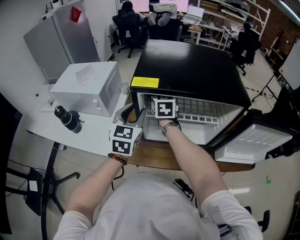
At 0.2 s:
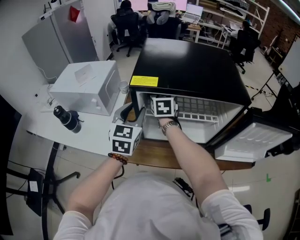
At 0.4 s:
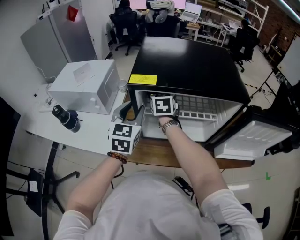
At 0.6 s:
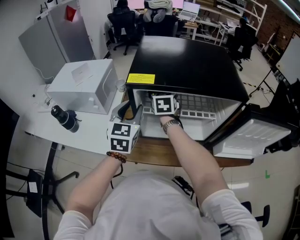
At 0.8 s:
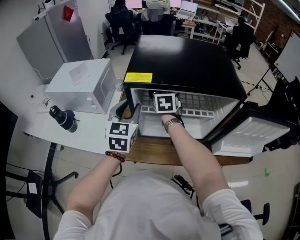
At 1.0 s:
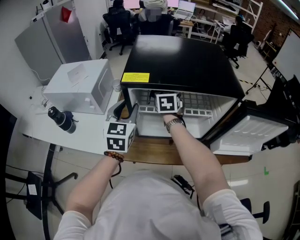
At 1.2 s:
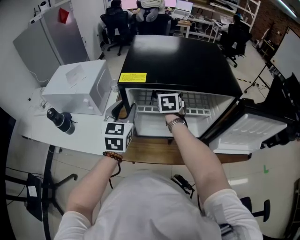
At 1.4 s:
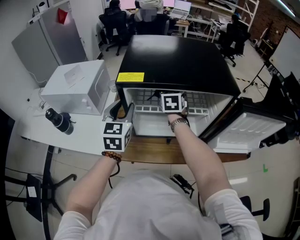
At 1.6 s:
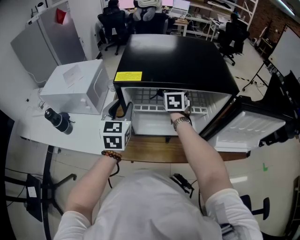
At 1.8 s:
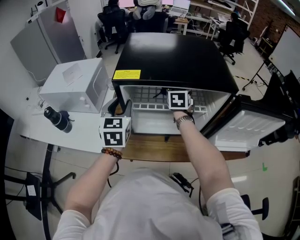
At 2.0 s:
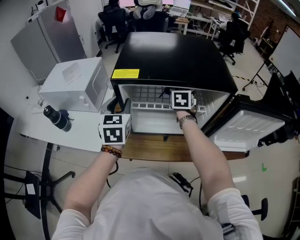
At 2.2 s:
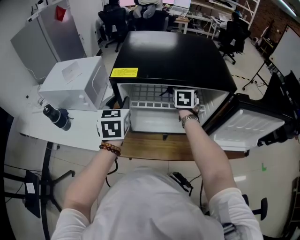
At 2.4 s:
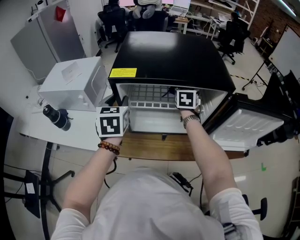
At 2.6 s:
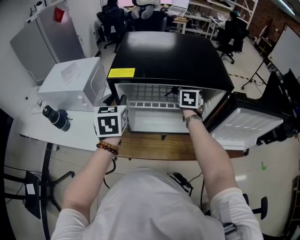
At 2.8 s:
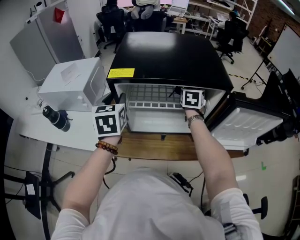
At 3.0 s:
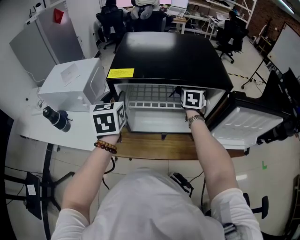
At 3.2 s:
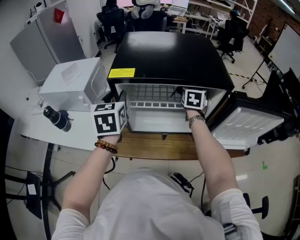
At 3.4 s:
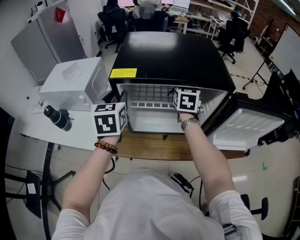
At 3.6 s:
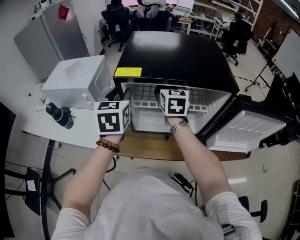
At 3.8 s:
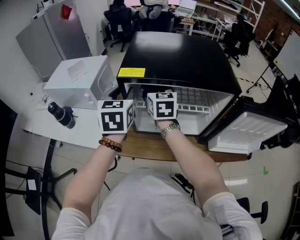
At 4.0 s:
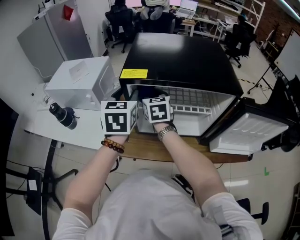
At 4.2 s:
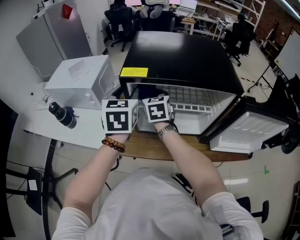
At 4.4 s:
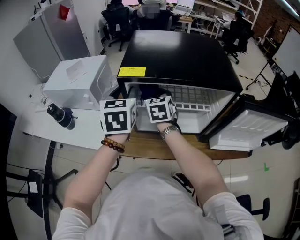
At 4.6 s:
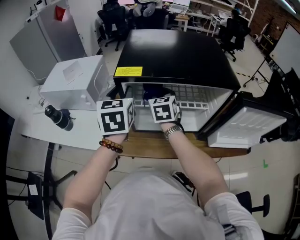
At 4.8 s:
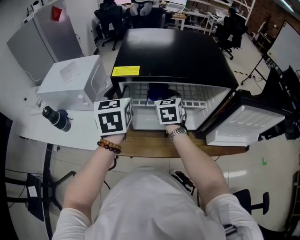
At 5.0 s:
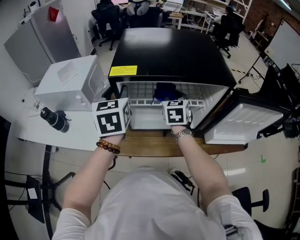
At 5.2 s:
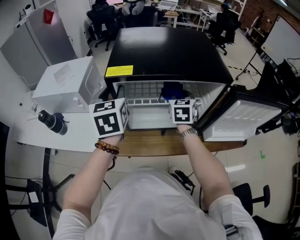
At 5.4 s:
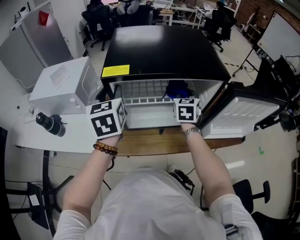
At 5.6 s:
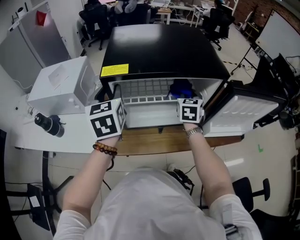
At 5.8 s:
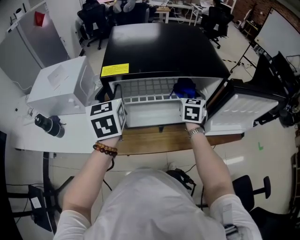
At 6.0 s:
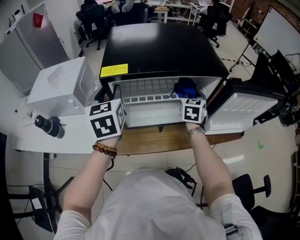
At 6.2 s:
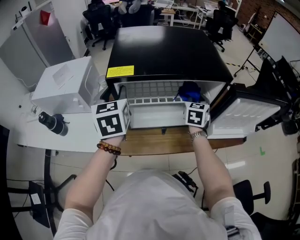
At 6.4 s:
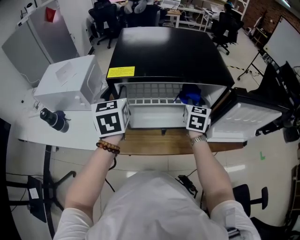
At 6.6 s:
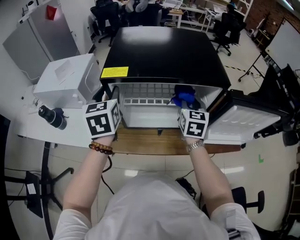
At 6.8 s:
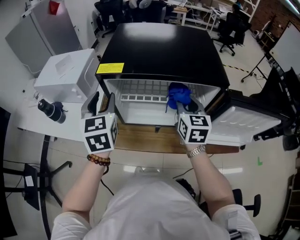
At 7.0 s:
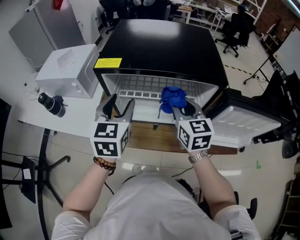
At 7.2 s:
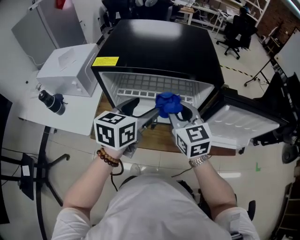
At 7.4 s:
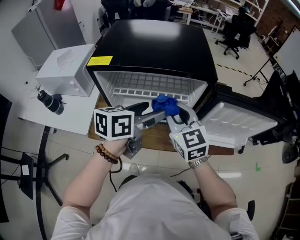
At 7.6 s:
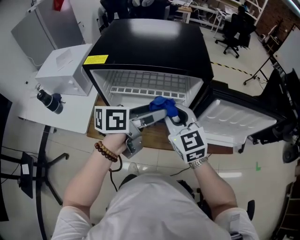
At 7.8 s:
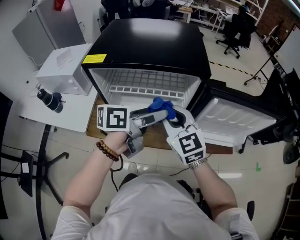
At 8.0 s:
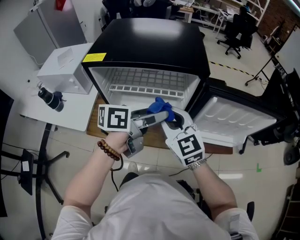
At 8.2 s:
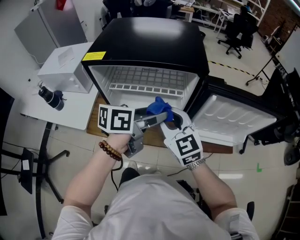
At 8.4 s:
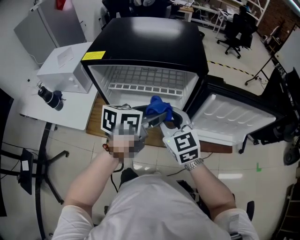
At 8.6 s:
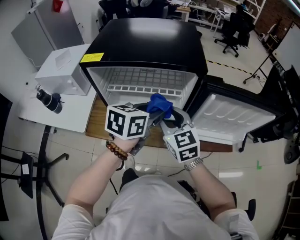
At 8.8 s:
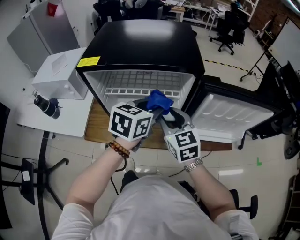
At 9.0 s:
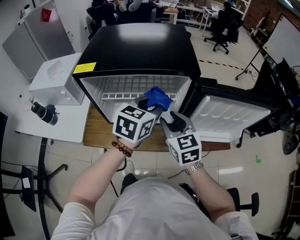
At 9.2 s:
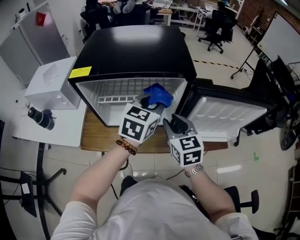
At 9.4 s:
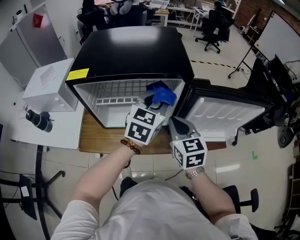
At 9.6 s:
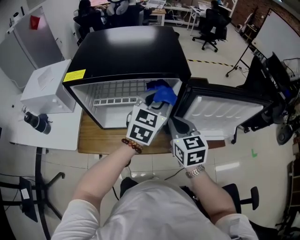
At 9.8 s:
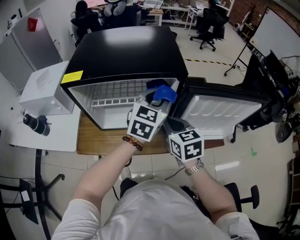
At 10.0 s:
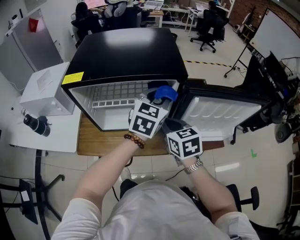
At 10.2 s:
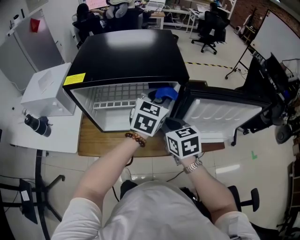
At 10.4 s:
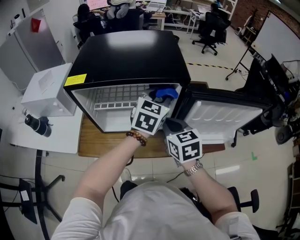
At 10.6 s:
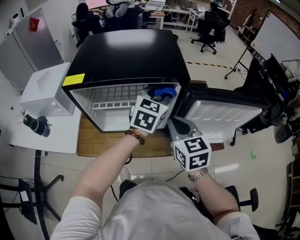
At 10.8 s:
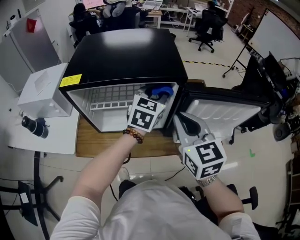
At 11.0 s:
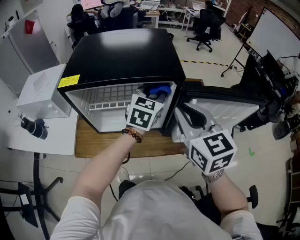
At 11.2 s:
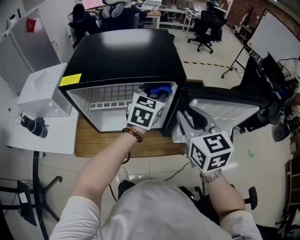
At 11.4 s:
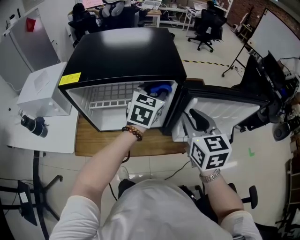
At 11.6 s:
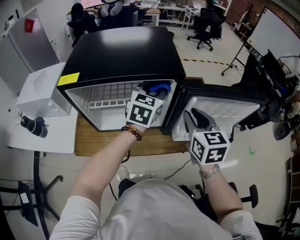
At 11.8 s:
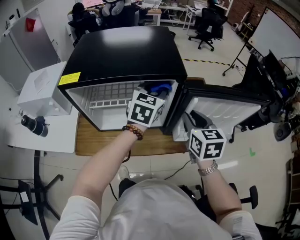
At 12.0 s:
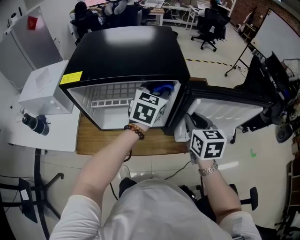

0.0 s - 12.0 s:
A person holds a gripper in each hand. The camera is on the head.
0.0 s - 1.6 s: The right gripper goes about 15 cm to the right, and rotates some 20 degrees.
1.6 s - 3.0 s: The right gripper travels to the right by roughly 10 cm.
3.0 s - 4.4 s: The right gripper shifts some 25 cm to the left, and changes its angle by roughly 20 degrees.
4.4 s - 6.0 s: The right gripper shifts about 25 cm to the right, and swivels roughly 30 degrees.
6.0 s - 7.6 s: The left gripper goes approximately 25 cm to the right, rotates approximately 60 degrees, and opens its fingers, while the right gripper goes about 15 cm backward and upward, and changes its angle by some 50 degrees.
7.6 s - 9.0 s: The left gripper ends up some 5 cm from where it was, changes its angle by some 40 degrees, and closes up, while the right gripper goes about 5 cm downward.
9.0 s - 10.4 s: The right gripper closes its fingers. Meanwhile the left gripper travels forward and to the right by approximately 10 cm.
10.4 s - 12.0 s: The right gripper is displaced to the right by approximately 10 cm, and moves approximately 15 cm upward and comes back.

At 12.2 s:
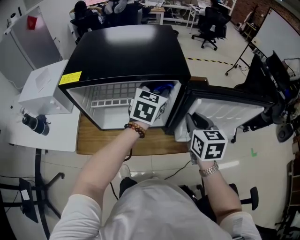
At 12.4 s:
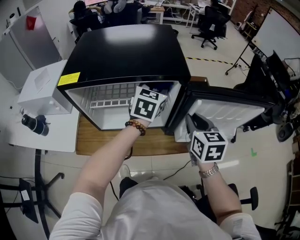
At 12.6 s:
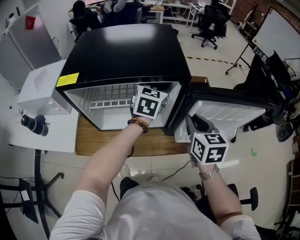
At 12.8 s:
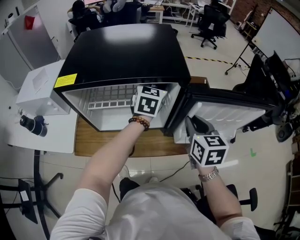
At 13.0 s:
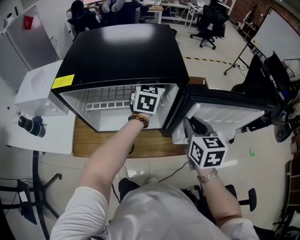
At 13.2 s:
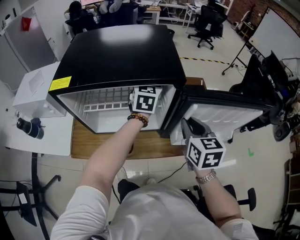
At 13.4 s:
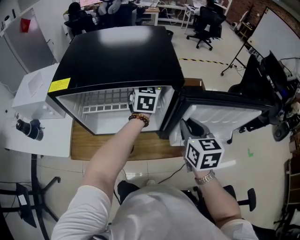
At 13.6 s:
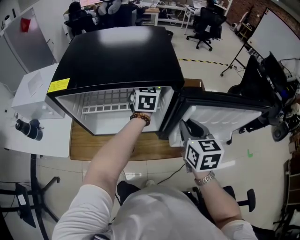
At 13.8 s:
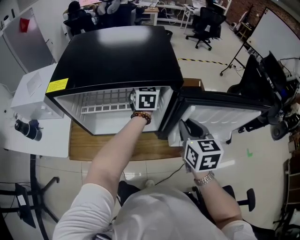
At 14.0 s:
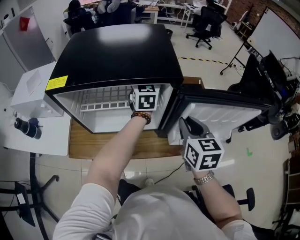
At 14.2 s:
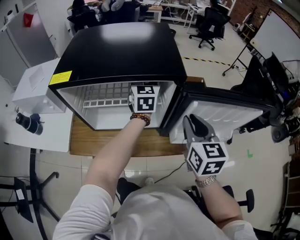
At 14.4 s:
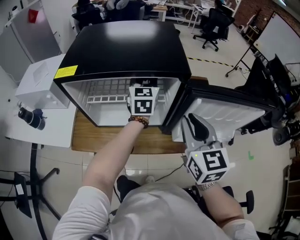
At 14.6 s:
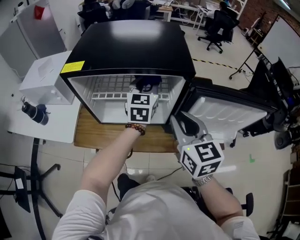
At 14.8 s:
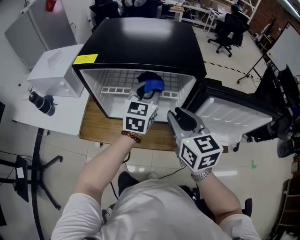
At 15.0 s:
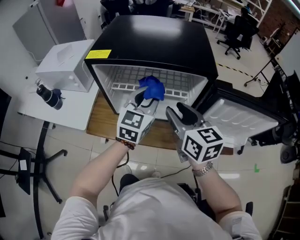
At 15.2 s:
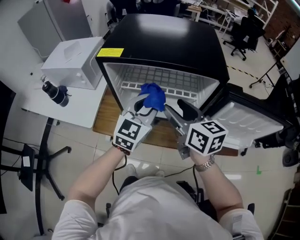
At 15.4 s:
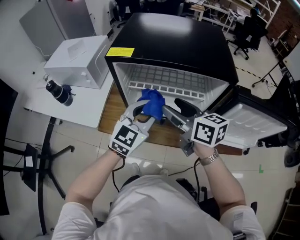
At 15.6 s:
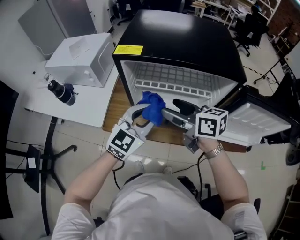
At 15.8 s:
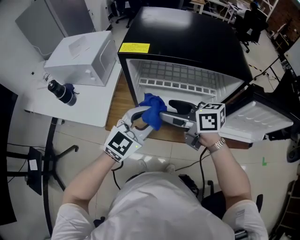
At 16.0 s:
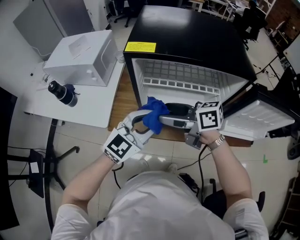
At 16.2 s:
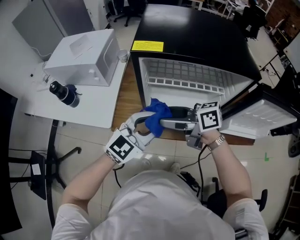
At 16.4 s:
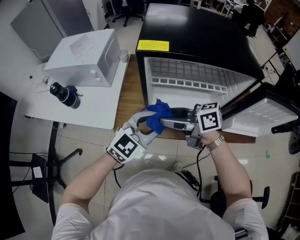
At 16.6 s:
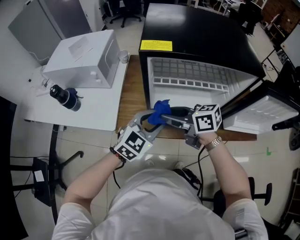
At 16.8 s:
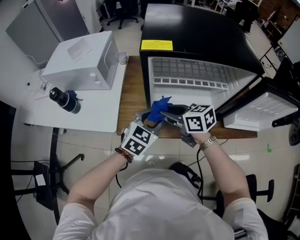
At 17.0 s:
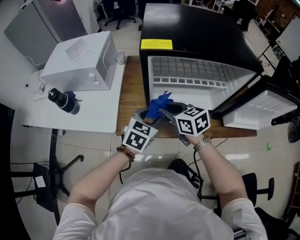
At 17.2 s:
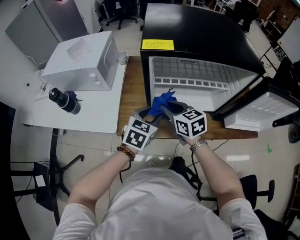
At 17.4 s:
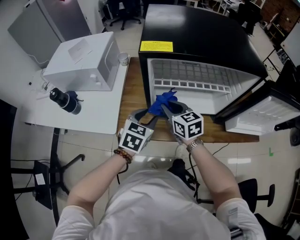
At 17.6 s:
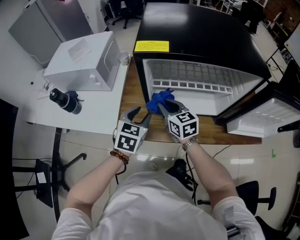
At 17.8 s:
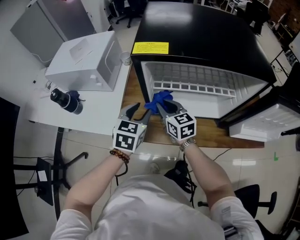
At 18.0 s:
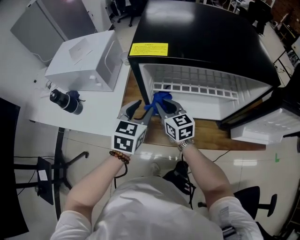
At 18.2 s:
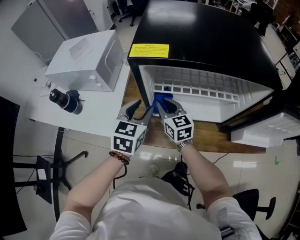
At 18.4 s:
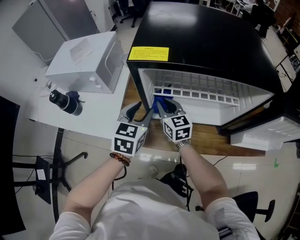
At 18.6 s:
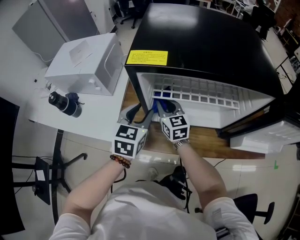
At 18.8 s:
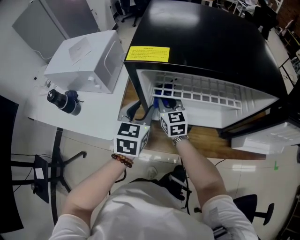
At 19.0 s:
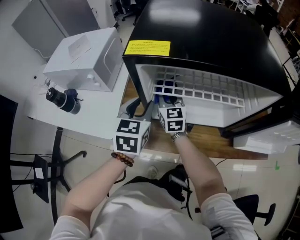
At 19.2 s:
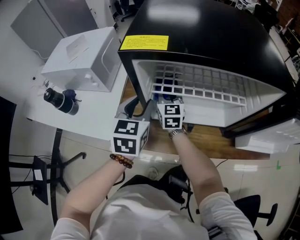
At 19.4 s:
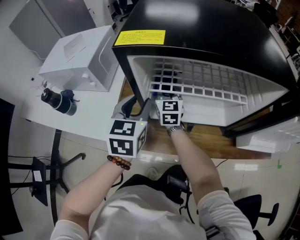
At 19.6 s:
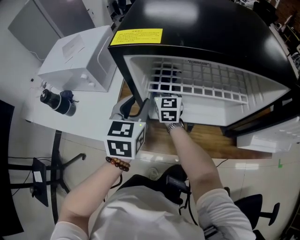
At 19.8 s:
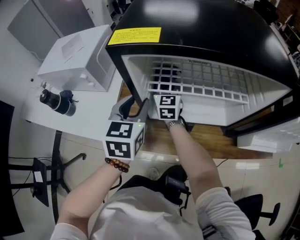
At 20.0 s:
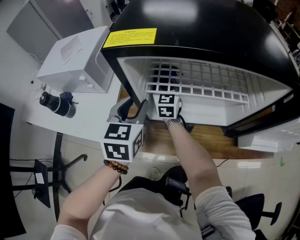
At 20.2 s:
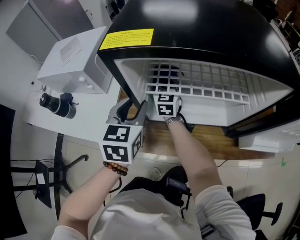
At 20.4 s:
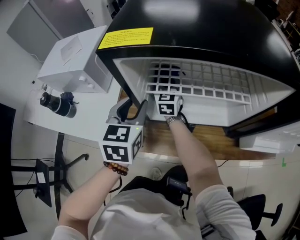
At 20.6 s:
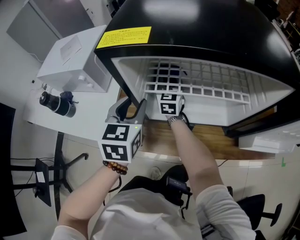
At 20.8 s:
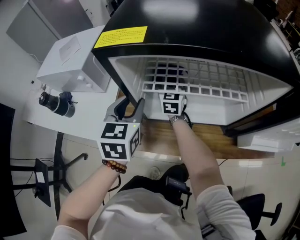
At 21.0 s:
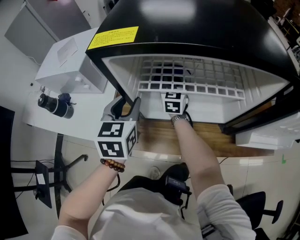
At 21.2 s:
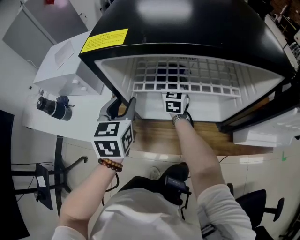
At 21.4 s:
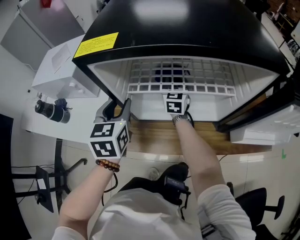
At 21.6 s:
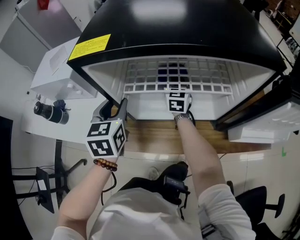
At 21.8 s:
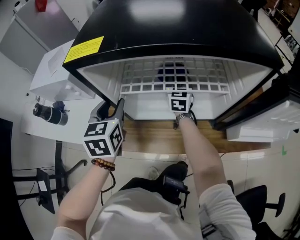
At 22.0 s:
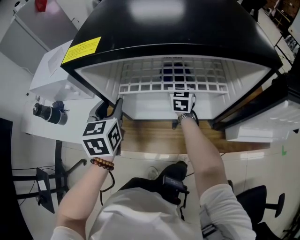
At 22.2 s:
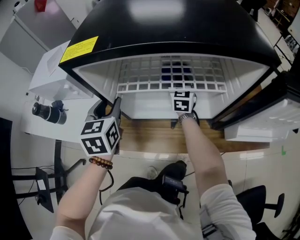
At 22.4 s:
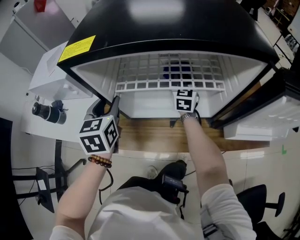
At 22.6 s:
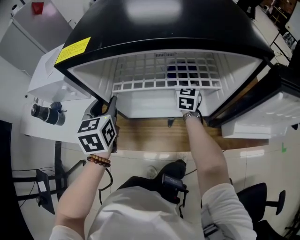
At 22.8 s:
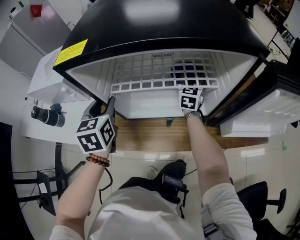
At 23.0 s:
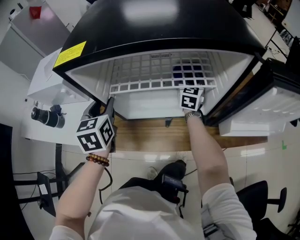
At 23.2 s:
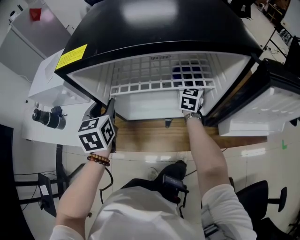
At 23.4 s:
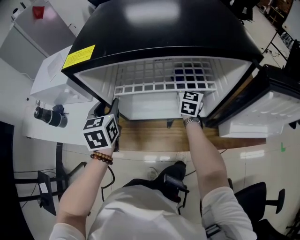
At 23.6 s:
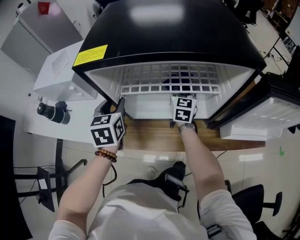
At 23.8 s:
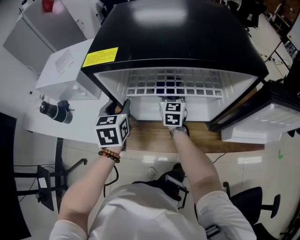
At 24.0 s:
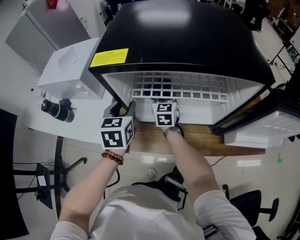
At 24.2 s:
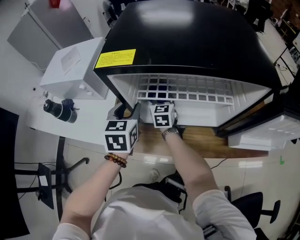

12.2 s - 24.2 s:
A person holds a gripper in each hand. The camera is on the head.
12.2 s - 13.8 s: The left gripper shifts roughly 10 cm forward, and turns by some 20 degrees.
13.8 s - 15.2 s: The left gripper shifts roughly 25 cm backward and to the left. Meanwhile the right gripper travels to the left by some 20 cm, rotates some 30 degrees, and opens.
15.2 s - 16.6 s: The right gripper ends up roughly 20 cm from where it was, and turns by some 30 degrees. Meanwhile the left gripper shifts by some 15 cm, and rotates roughly 20 degrees.
16.6 s - 18.2 s: The left gripper is displaced forward by roughly 10 cm, and turns by about 30 degrees. The right gripper heads forward and downward, covering roughly 15 cm, and swivels approximately 40 degrees.
18.2 s - 19.8 s: The right gripper shifts approximately 15 cm forward, and turns by about 20 degrees.
19.8 s - 21.2 s: The right gripper shifts approximately 10 cm to the right.
21.2 s - 22.6 s: The right gripper moves to the right, approximately 15 cm.
22.6 s - 24.2 s: The right gripper travels to the left by roughly 20 cm.
